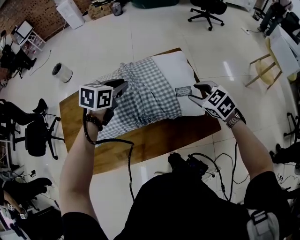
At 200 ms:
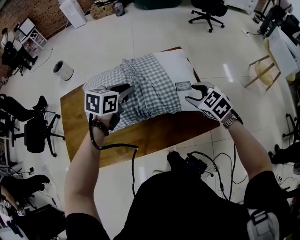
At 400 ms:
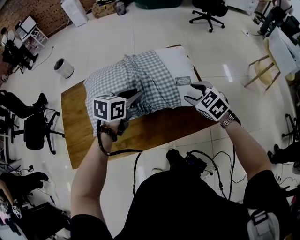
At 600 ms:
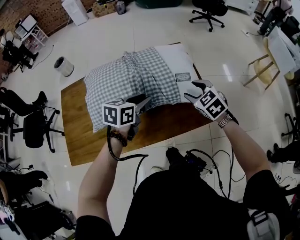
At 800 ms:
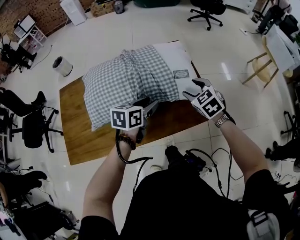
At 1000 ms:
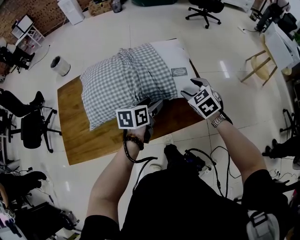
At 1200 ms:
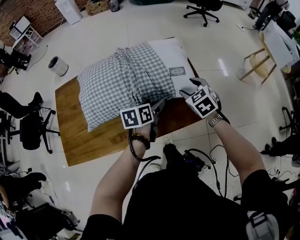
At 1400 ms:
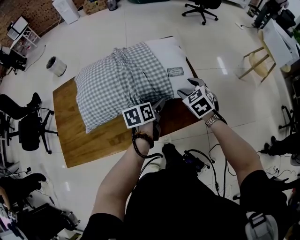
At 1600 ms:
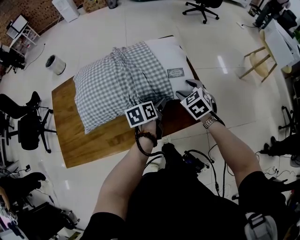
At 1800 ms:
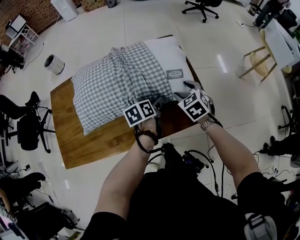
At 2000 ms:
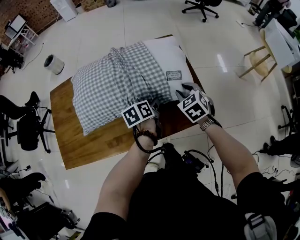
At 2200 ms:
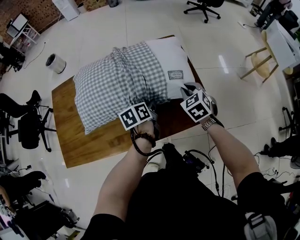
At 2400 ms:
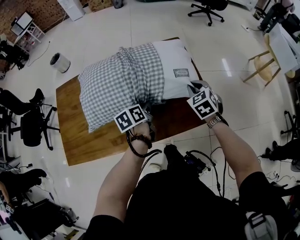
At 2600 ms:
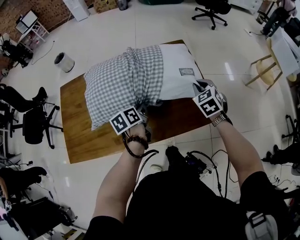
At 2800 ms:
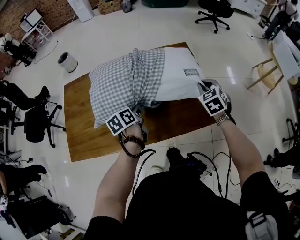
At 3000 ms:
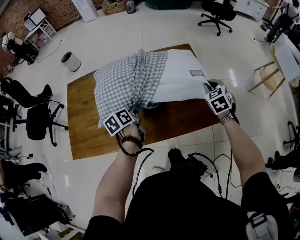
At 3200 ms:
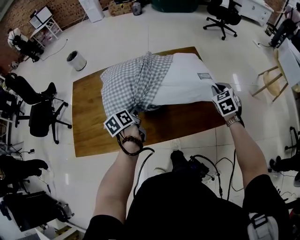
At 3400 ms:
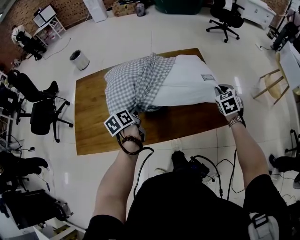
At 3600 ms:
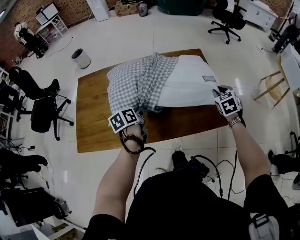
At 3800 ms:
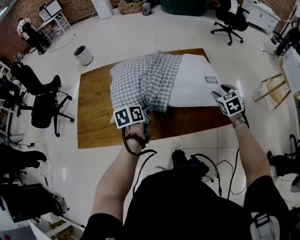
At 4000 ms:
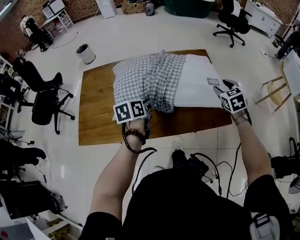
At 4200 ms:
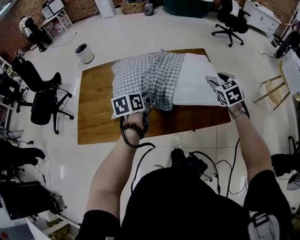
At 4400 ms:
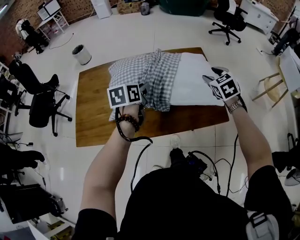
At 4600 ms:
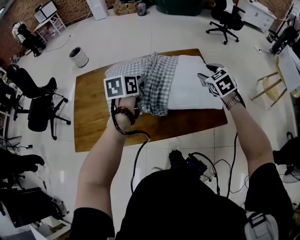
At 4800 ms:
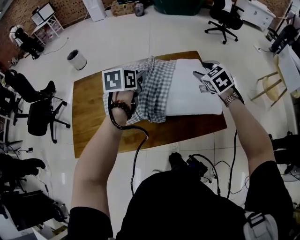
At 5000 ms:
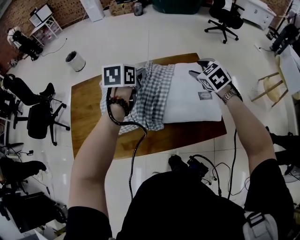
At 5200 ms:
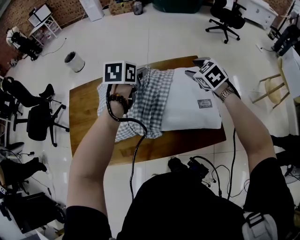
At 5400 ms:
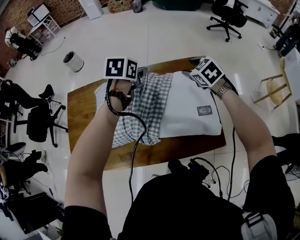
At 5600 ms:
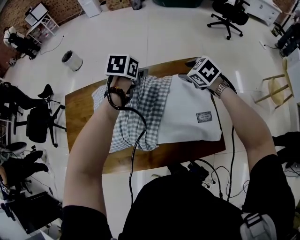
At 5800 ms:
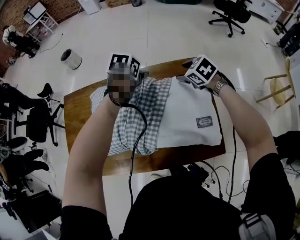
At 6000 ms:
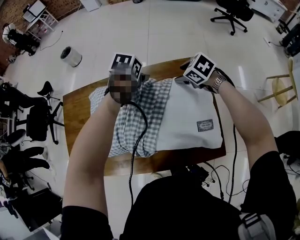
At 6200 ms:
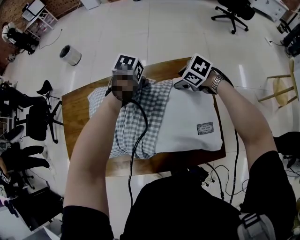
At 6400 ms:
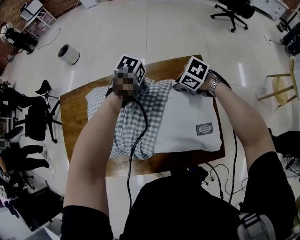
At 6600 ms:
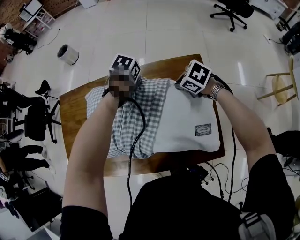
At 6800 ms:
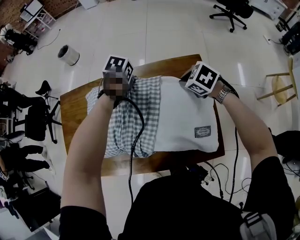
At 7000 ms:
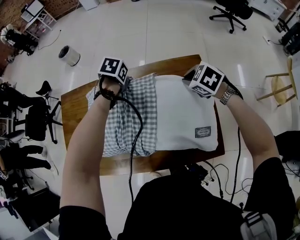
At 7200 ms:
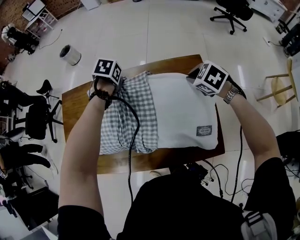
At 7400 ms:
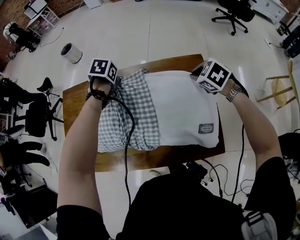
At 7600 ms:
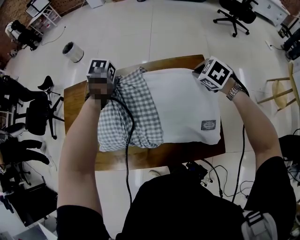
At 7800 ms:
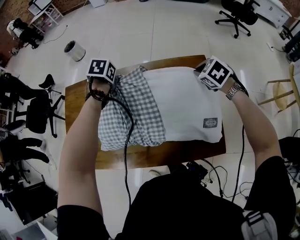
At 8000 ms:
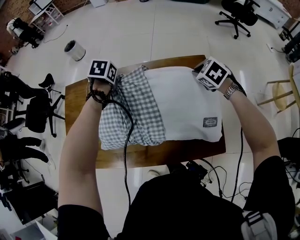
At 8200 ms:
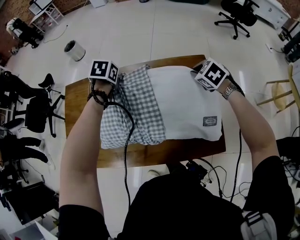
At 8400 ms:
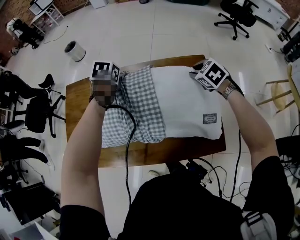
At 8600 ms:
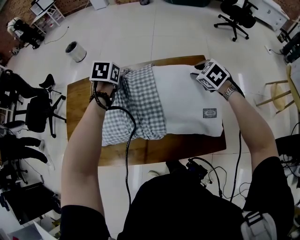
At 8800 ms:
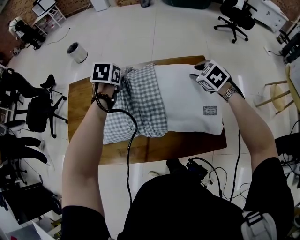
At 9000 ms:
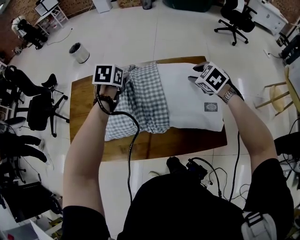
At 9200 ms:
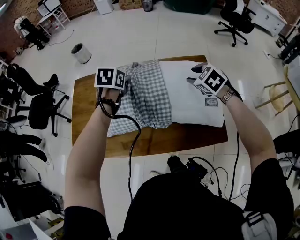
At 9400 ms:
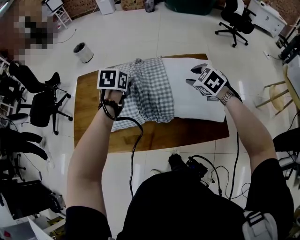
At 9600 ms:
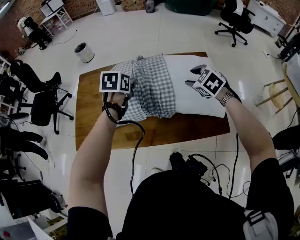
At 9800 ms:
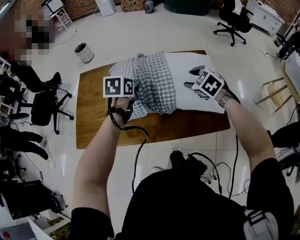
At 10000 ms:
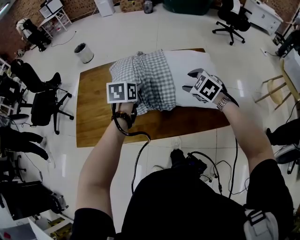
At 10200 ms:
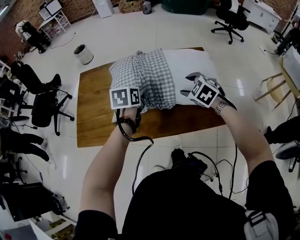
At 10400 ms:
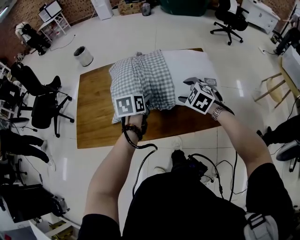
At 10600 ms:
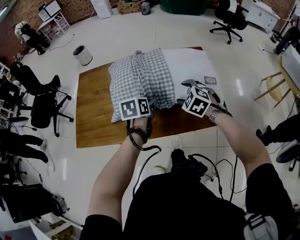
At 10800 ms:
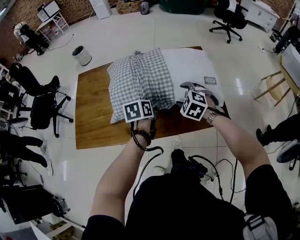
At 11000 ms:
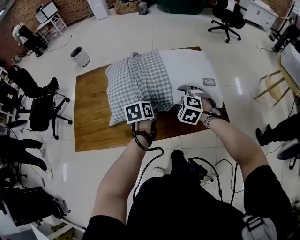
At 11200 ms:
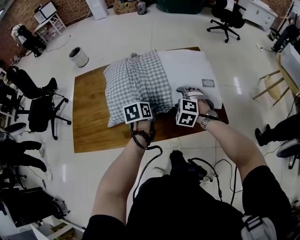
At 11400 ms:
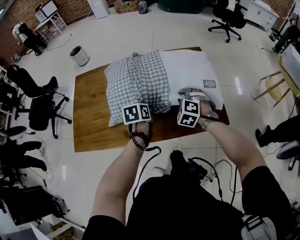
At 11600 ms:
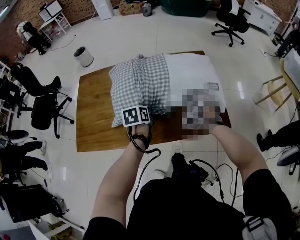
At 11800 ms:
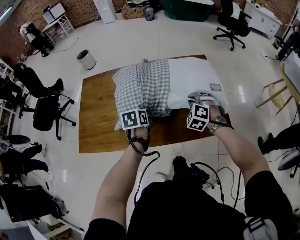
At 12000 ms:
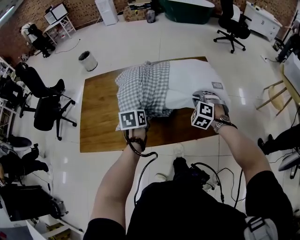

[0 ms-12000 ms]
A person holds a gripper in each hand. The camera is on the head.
0 ms to 1600 ms: The left gripper travels downward, to the right and backward by about 25 cm, turns by roughly 40 degrees, and opens; the right gripper travels downward by some 10 cm.
1600 ms to 3000 ms: The right gripper is displaced to the right by some 5 cm, and closes up. The left gripper moves to the left and backward, about 15 cm, and closes its fingers.
3000 ms to 4400 ms: The right gripper travels to the left and upward by some 10 cm, and opens. Meanwhile the left gripper heads upward, covering some 10 cm, and swivels about 20 degrees.
4400 ms to 6000 ms: The two grippers go about 35 cm forward. The right gripper swivels approximately 40 degrees. The left gripper angles its fingers downward, by roughly 30 degrees, and opens its fingers.
6000 ms to 7600 ms: The left gripper ends up approximately 15 cm from where it was, and closes its fingers, while the right gripper changes place by roughly 5 cm, and closes.
7600 ms to 9000 ms: The right gripper changes place by about 10 cm, and opens up, while the left gripper changes place by roughly 10 cm, and turns by about 20 degrees.
9000 ms to 10400 ms: The left gripper is displaced backward by some 25 cm; the right gripper heads backward and to the left, covering approximately 25 cm.
10400 ms to 12000 ms: Both grippers move downward, about 5 cm. The left gripper closes; the right gripper turns by about 30 degrees, and closes.

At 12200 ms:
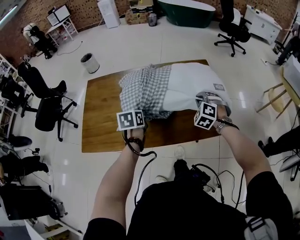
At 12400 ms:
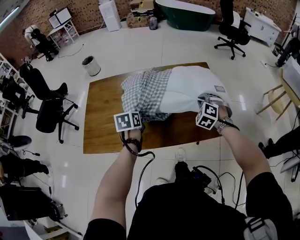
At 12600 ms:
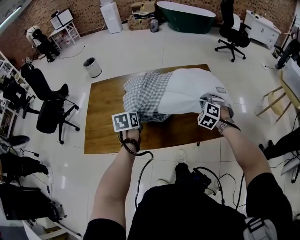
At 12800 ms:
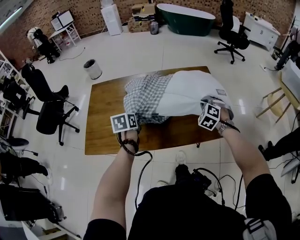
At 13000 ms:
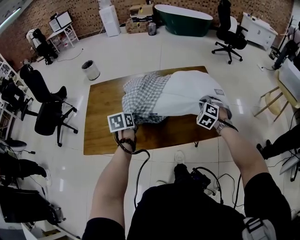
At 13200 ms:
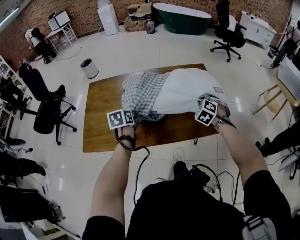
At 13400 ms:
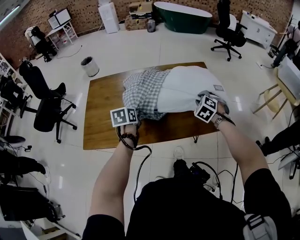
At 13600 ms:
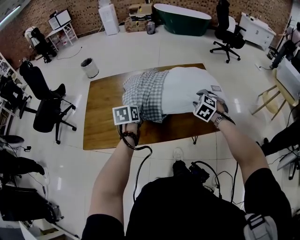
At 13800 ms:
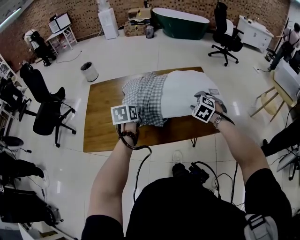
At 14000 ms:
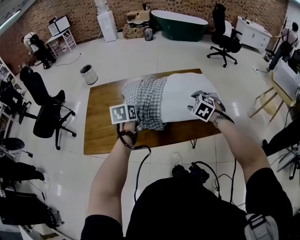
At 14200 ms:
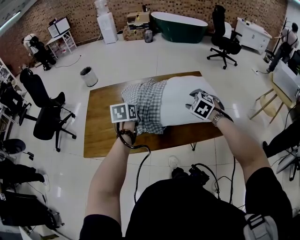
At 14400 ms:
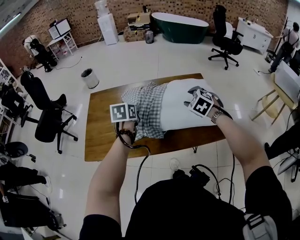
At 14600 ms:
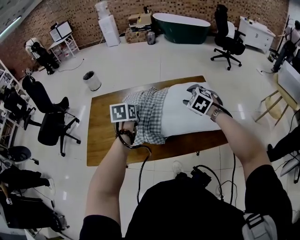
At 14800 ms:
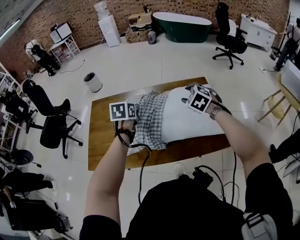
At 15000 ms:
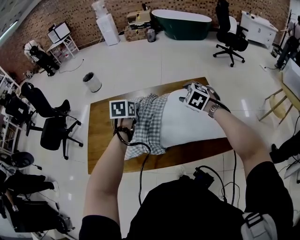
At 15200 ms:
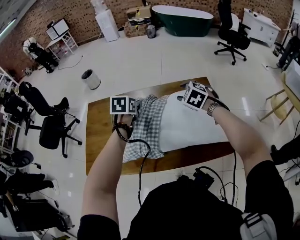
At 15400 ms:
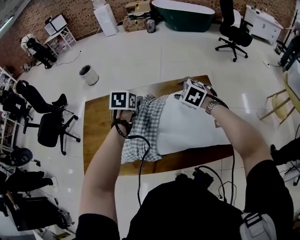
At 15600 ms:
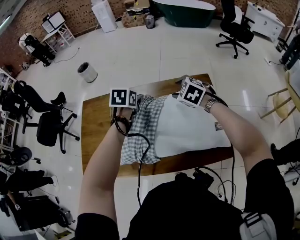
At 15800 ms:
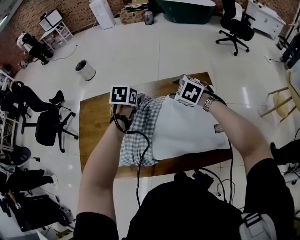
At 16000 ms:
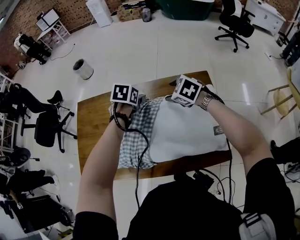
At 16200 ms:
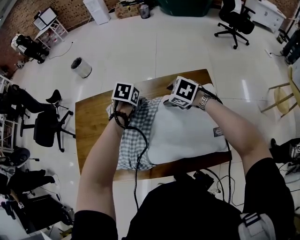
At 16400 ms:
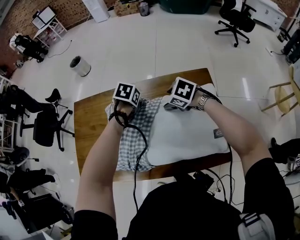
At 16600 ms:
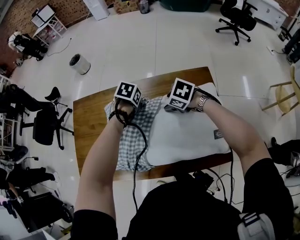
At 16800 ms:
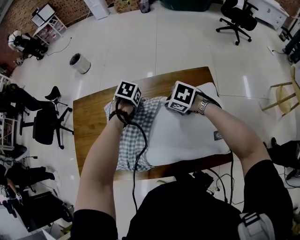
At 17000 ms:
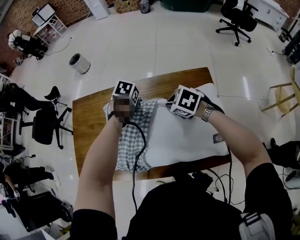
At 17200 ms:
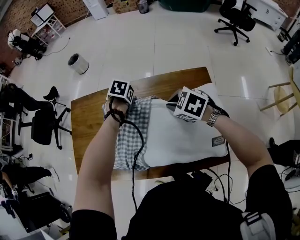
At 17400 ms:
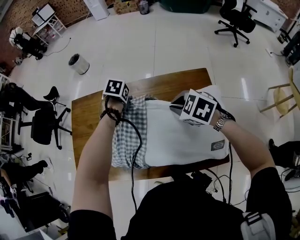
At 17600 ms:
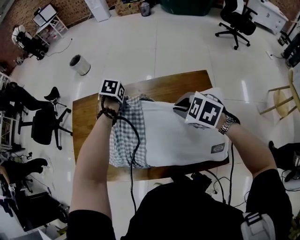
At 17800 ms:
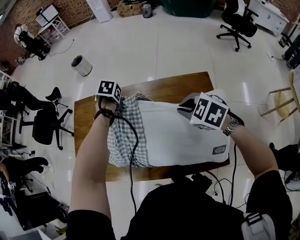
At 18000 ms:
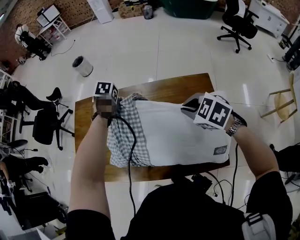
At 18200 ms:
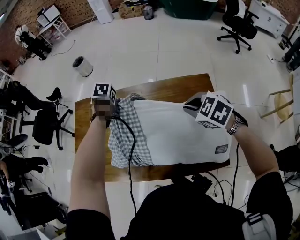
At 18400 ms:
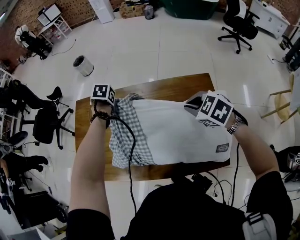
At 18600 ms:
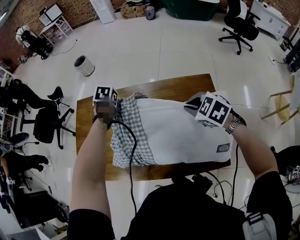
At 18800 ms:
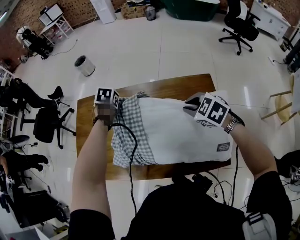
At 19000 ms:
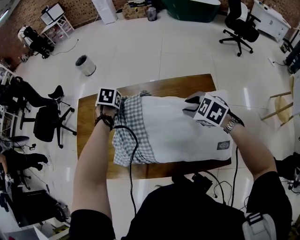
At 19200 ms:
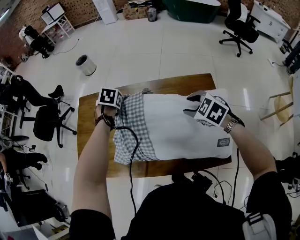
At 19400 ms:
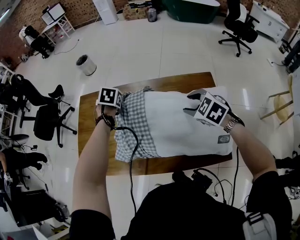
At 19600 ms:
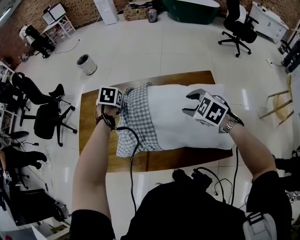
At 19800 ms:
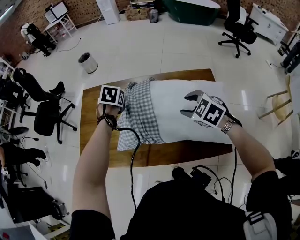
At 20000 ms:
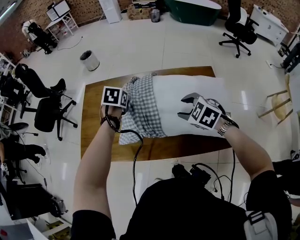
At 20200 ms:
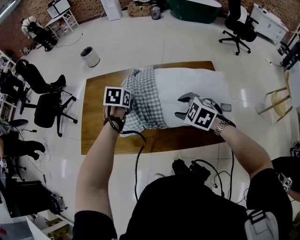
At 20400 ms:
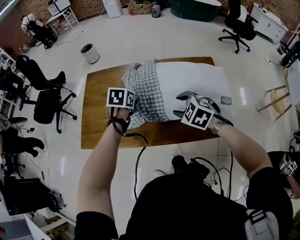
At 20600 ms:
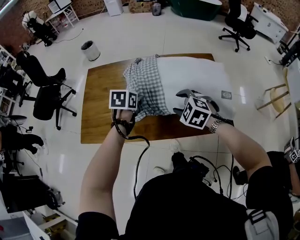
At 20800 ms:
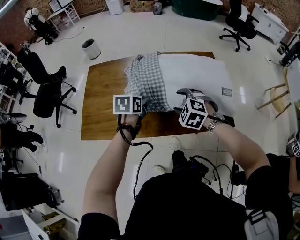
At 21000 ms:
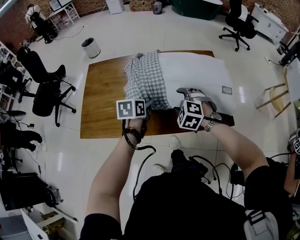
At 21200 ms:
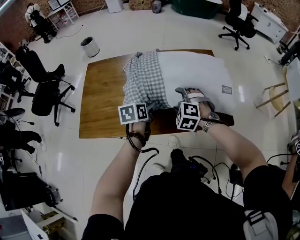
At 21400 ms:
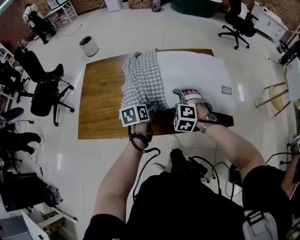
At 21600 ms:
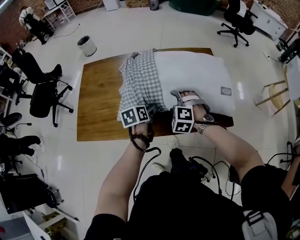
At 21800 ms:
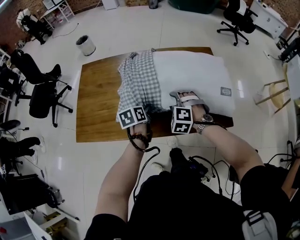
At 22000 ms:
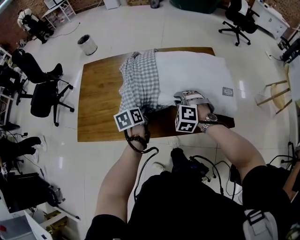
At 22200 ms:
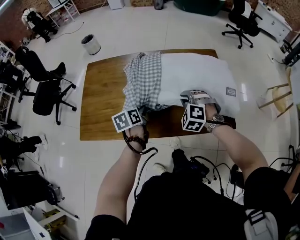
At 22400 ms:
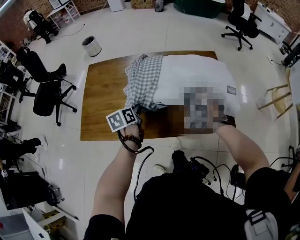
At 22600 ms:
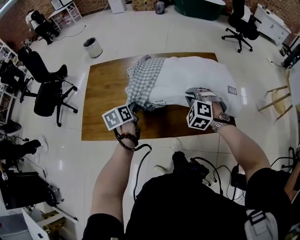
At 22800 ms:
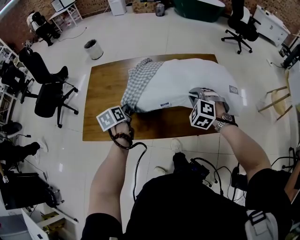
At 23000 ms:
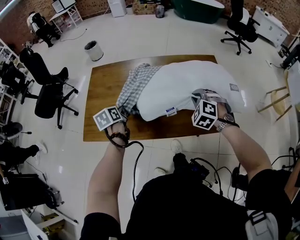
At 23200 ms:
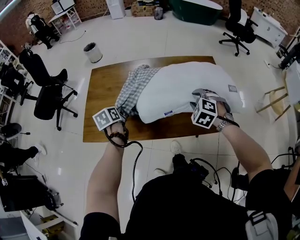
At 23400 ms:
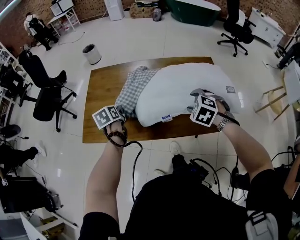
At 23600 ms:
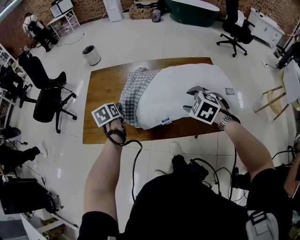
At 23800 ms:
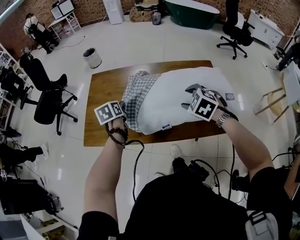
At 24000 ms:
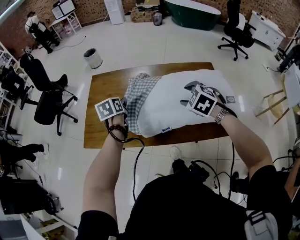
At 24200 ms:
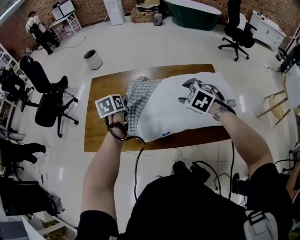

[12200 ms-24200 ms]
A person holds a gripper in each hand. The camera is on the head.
12200 ms to 13800 ms: The left gripper heads backward, covering about 5 cm; the right gripper heads backward, covering about 10 cm, and opens its fingers.
13800 ms to 15200 ms: The left gripper moves forward and to the right, about 20 cm, and opens its fingers, while the right gripper shifts some 20 cm forward.
15200 ms to 16600 ms: The left gripper moves approximately 25 cm, and tips its fingers downward by roughly 30 degrees, while the right gripper ends up some 20 cm from where it was, and turns by roughly 30 degrees.
16600 ms to 18200 ms: The right gripper is displaced upward by some 10 cm, and closes. Meanwhile the left gripper ends up about 15 cm from where it was, and closes up.
18200 ms to 19800 ms: The left gripper changes place by approximately 10 cm, and opens; the right gripper moves approximately 10 cm, and opens.
19800 ms to 21200 ms: The left gripper goes roughly 20 cm backward, and changes its angle by approximately 30 degrees; the right gripper travels downward, to the left and backward by some 15 cm, and swivels roughly 30 degrees.
21200 ms to 22600 ms: The right gripper shifts by roughly 5 cm, and closes up, while the left gripper travels to the left by some 10 cm, and closes up.
22600 ms to 24200 ms: The grippers both shift upward by roughly 5 cm. The right gripper reaches some 10 cm backward, then returns, swivels some 30 degrees, and opens its fingers, while the left gripper opens.
